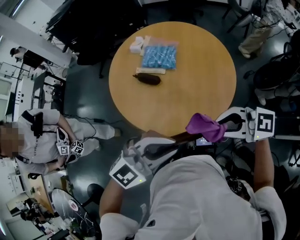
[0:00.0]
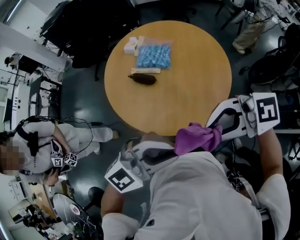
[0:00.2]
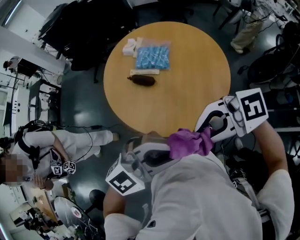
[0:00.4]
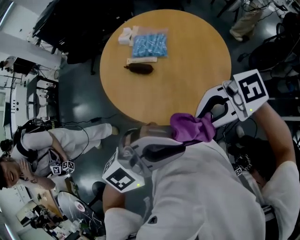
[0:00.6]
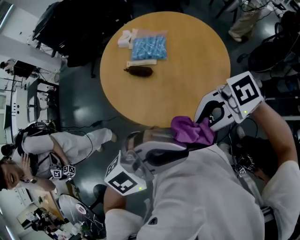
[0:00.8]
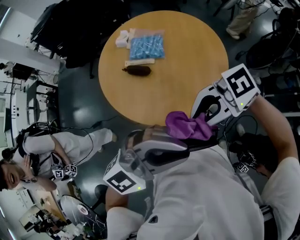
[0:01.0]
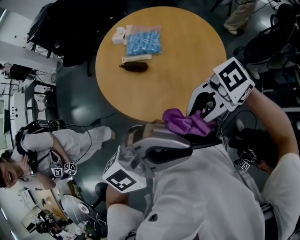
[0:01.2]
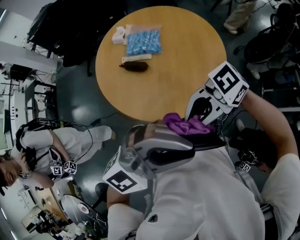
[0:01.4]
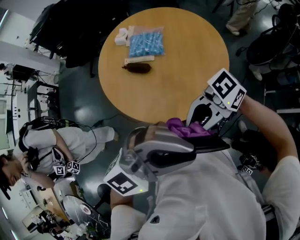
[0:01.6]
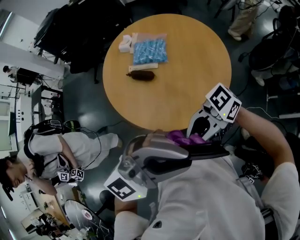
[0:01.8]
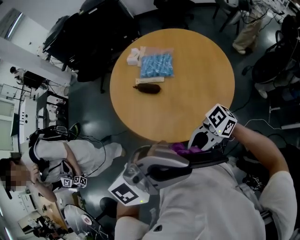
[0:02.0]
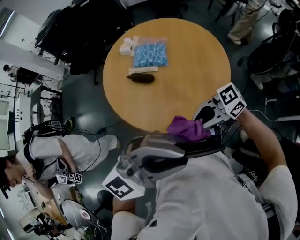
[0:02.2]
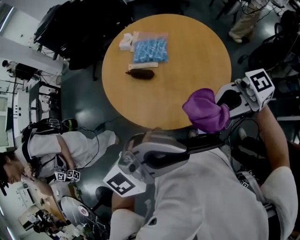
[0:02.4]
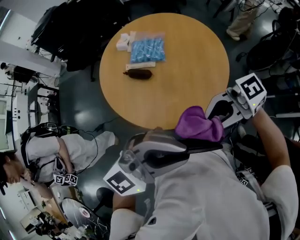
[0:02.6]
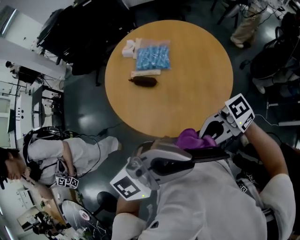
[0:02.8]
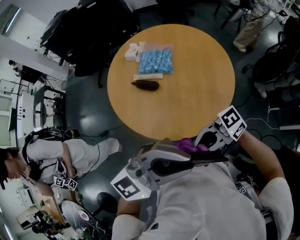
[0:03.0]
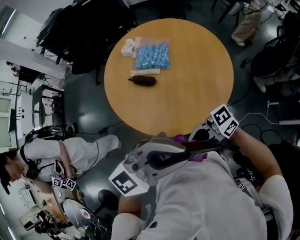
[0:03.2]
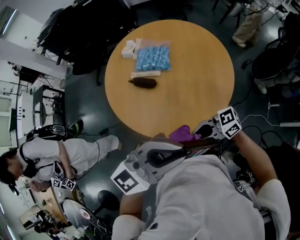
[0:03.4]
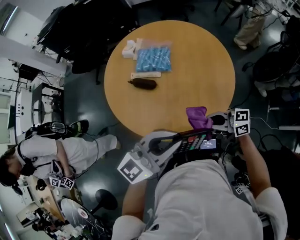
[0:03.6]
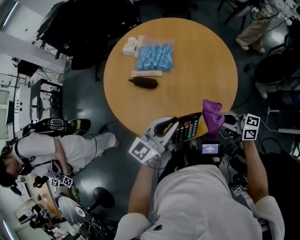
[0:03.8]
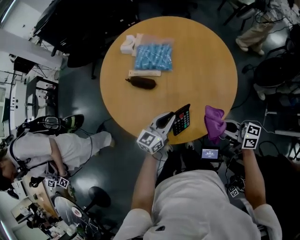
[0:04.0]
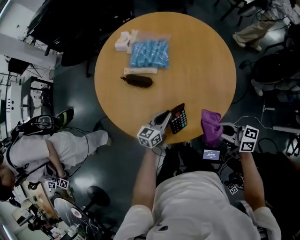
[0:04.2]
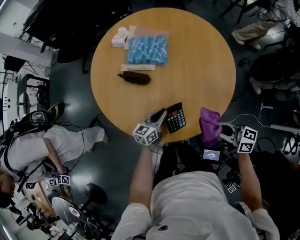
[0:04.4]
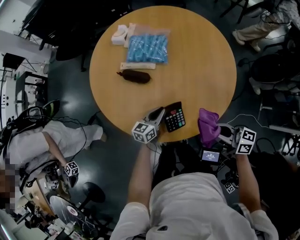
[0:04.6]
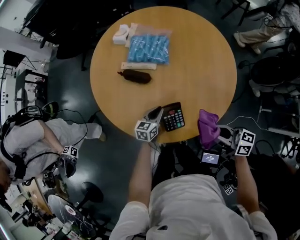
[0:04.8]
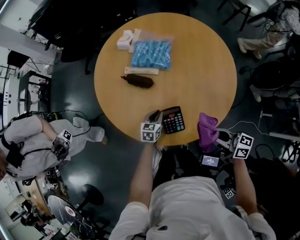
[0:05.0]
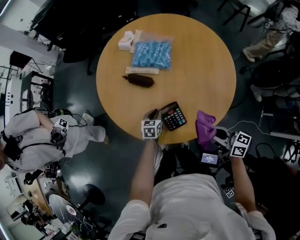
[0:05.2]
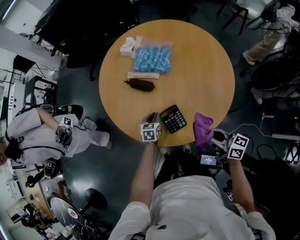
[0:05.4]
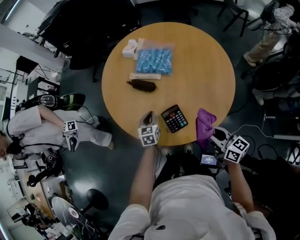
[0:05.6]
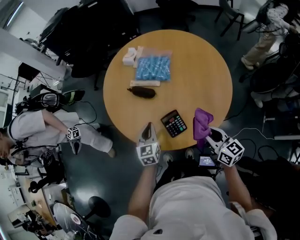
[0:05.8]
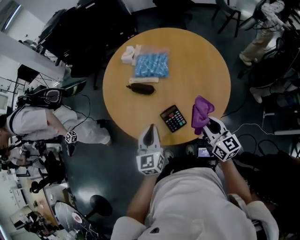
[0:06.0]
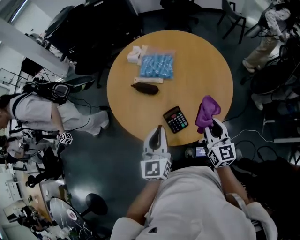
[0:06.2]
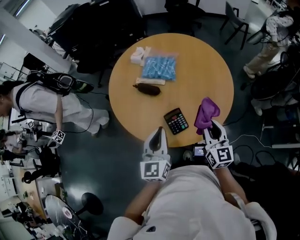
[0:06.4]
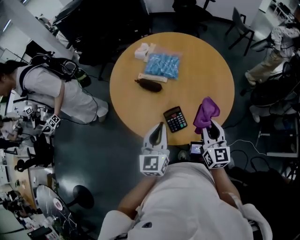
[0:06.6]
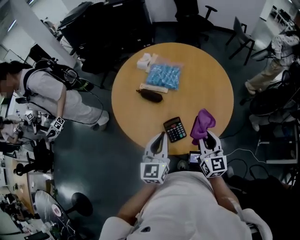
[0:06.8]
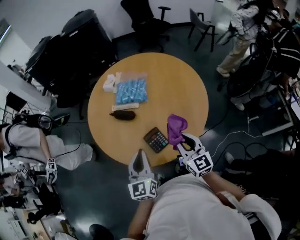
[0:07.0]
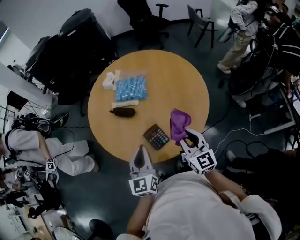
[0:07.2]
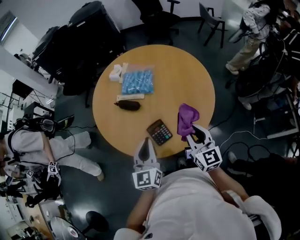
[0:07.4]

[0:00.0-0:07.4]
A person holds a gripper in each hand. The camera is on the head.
0:00.0 to 0:01.4: The left gripper travels upward by approximately 10 cm, and turns by about 20 degrees. The right gripper changes place by about 10 cm, and rotates some 40 degrees.
0:01.4 to 0:03.0: The right gripper goes up and down, roughly 10 cm each way, reversing 2 times.
0:03.0 to 0:04.4: The right gripper moves some 25 cm, and turns by some 60 degrees; the left gripper shifts approximately 50 cm downward, and changes its angle by approximately 60 degrees.
0:04.4 to 0:06.0: The right gripper moves upward, about 5 cm, and turns by about 40 degrees. Meanwhile the left gripper goes roughly 20 cm upward, and swivels some 40 degrees.
0:06.0 to 0:07.4: The left gripper heads to the right and upward, covering about 10 cm.

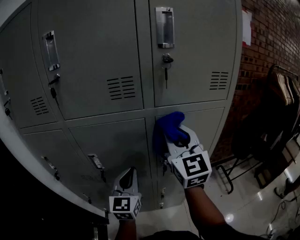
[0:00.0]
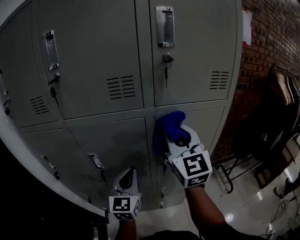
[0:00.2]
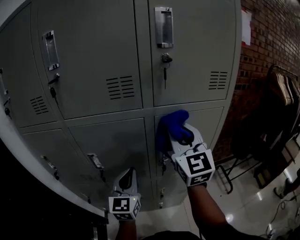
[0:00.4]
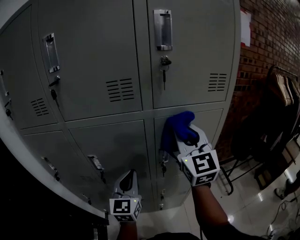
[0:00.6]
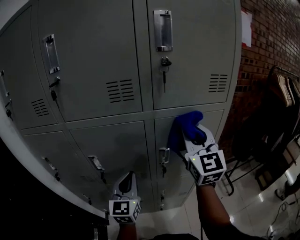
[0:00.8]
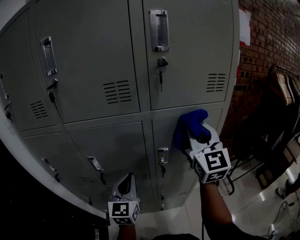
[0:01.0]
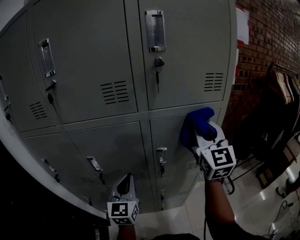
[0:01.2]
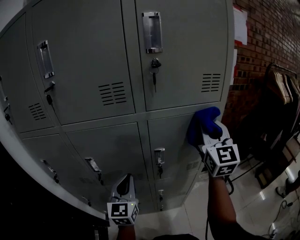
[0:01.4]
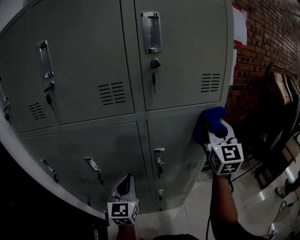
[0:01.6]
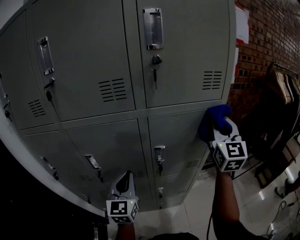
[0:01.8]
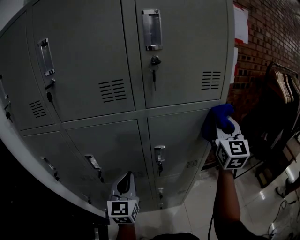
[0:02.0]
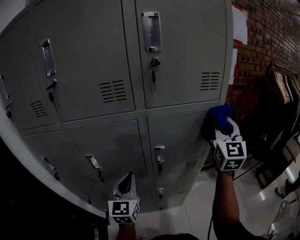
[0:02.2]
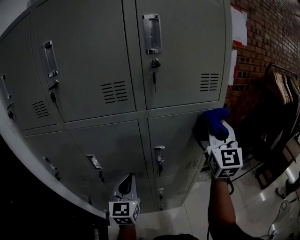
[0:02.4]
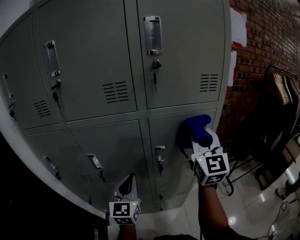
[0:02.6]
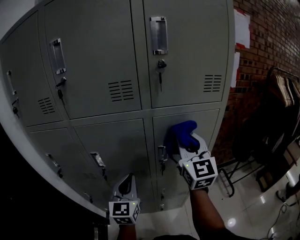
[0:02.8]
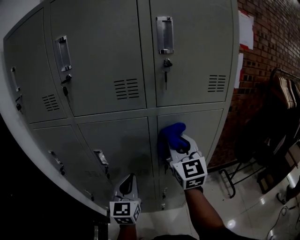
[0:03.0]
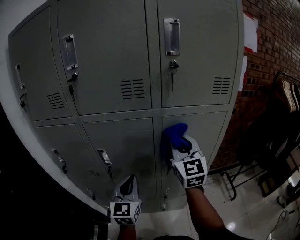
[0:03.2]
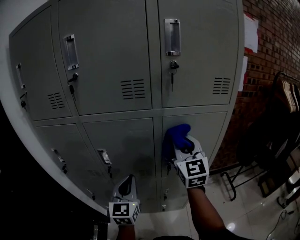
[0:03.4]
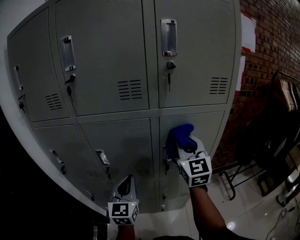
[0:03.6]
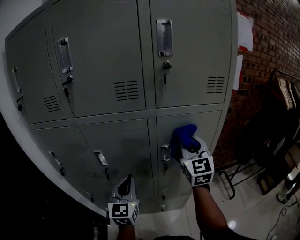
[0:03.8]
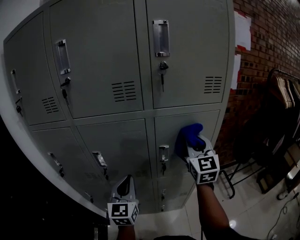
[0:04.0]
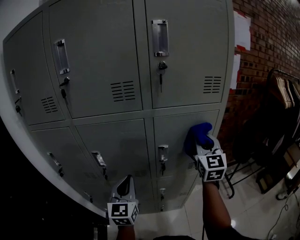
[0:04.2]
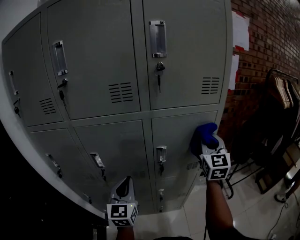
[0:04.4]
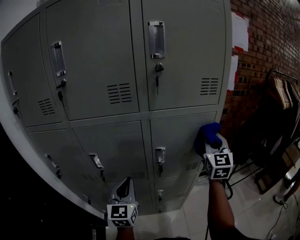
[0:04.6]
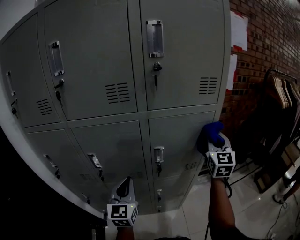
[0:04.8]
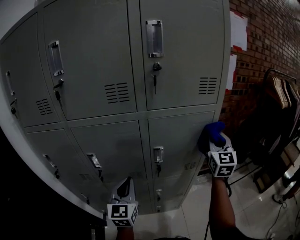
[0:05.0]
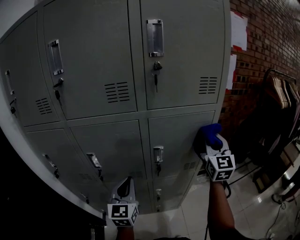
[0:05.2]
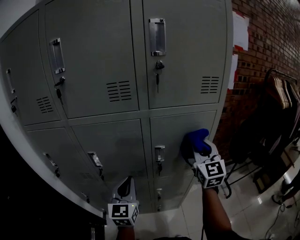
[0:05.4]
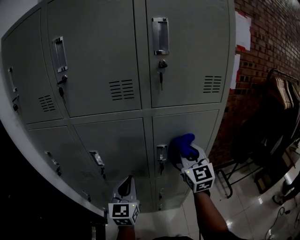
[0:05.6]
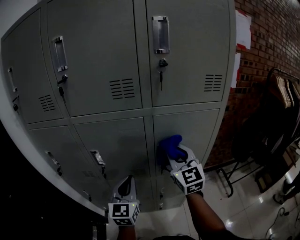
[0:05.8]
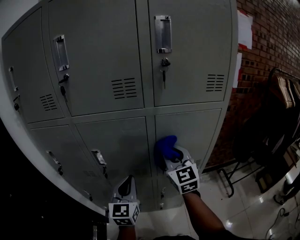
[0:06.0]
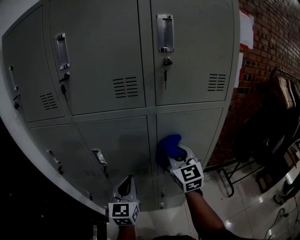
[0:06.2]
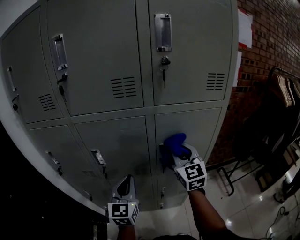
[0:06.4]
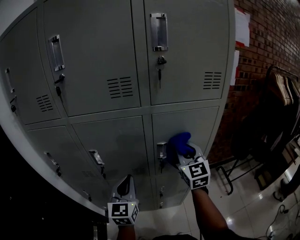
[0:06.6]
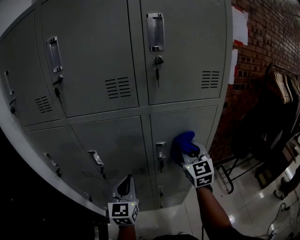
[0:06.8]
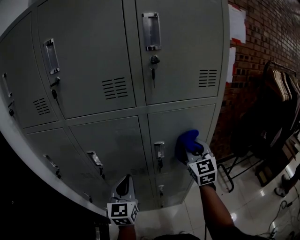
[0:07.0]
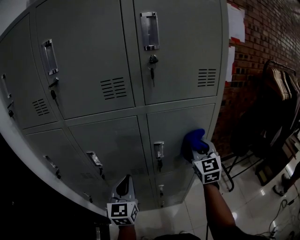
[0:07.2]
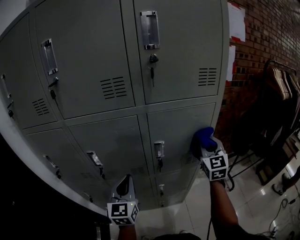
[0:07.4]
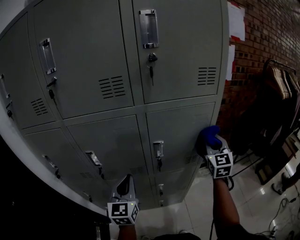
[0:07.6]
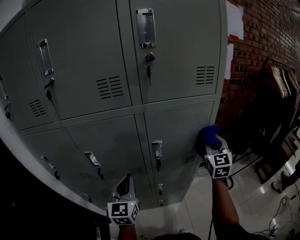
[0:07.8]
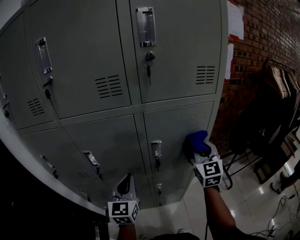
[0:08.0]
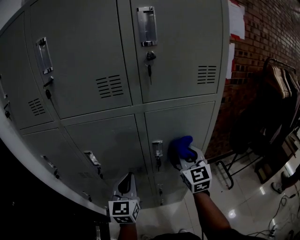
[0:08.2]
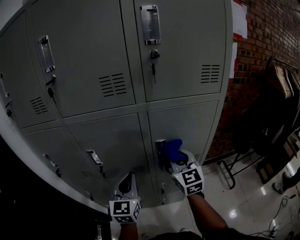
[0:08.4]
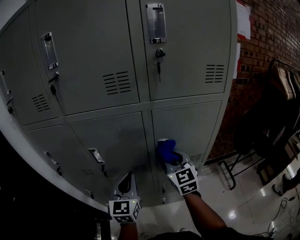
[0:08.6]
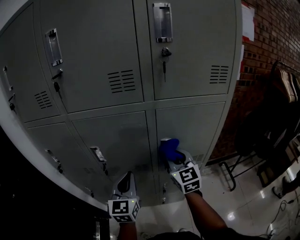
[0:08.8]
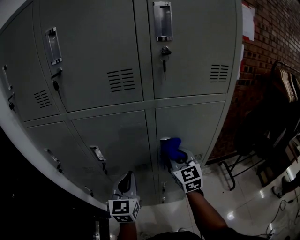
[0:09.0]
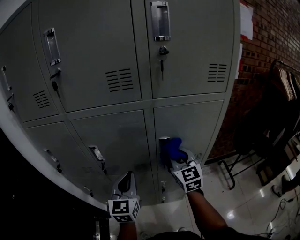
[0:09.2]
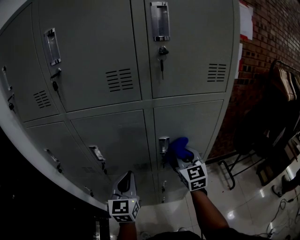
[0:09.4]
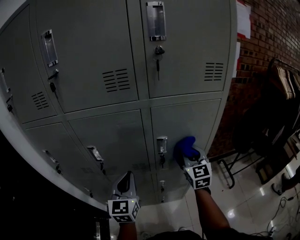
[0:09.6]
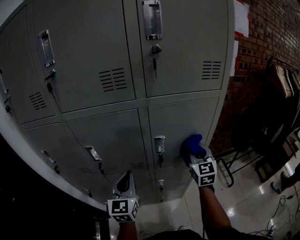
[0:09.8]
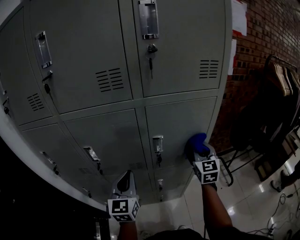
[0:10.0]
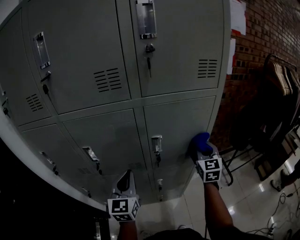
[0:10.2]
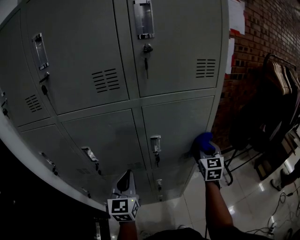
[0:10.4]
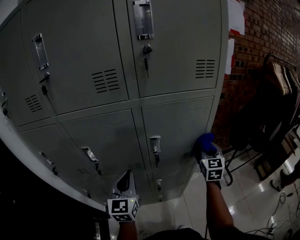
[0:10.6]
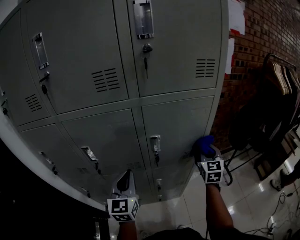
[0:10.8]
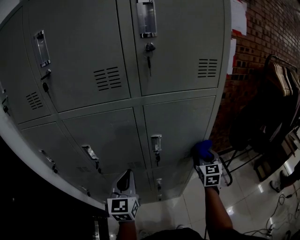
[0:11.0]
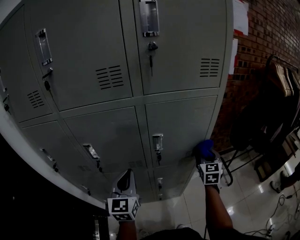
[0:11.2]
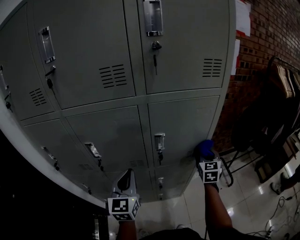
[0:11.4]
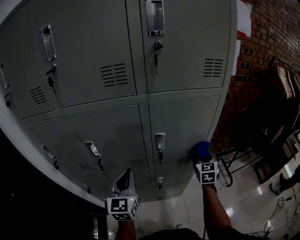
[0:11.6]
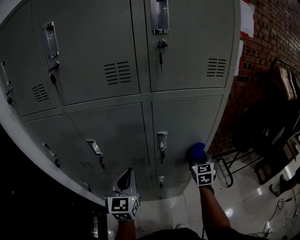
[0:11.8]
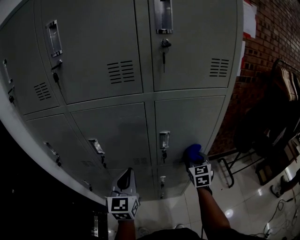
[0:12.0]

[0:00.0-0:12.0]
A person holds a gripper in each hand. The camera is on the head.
0:00.0 to 0:01.6: The right gripper travels to the right by about 20 cm.
0:01.6 to 0:03.0: The right gripper travels to the left by approximately 20 cm.
0:03.0 to 0:04.4: The right gripper shifts some 15 cm to the right.
0:04.4 to 0:06.0: The right gripper heads to the left, covering roughly 20 cm, and turns by approximately 20 degrees.
0:06.0 to 0:07.6: The right gripper travels to the right by roughly 20 cm, and rotates approximately 20 degrees.
0:07.6 to 0:09.0: The right gripper goes roughly 20 cm to the left, and rotates approximately 20 degrees.
0:09.0 to 0:10.4: The right gripper goes about 20 cm to the right, and changes its angle by about 20 degrees.
0:10.4 to 0:12.0: The right gripper shifts about 10 cm downward and to the left.

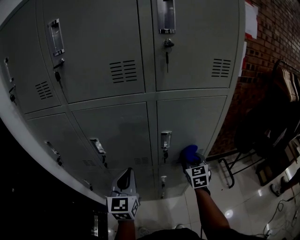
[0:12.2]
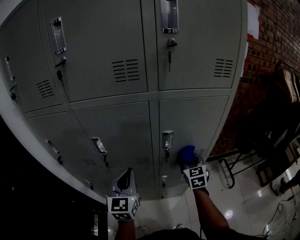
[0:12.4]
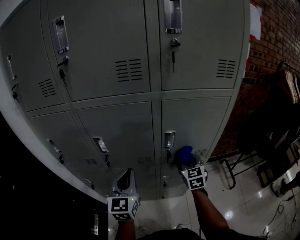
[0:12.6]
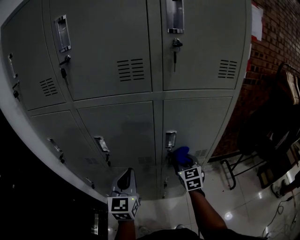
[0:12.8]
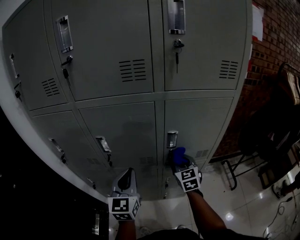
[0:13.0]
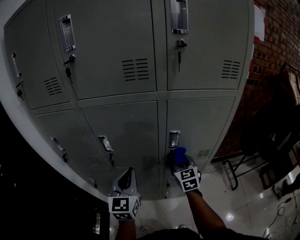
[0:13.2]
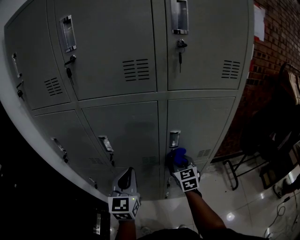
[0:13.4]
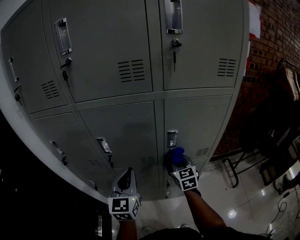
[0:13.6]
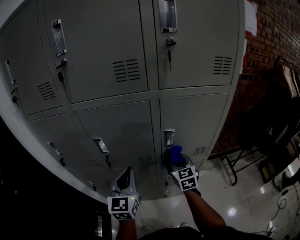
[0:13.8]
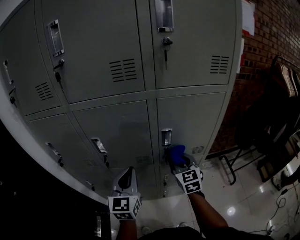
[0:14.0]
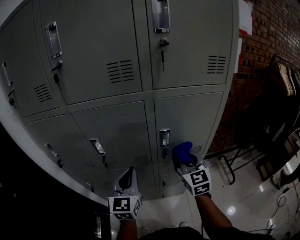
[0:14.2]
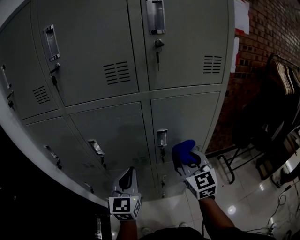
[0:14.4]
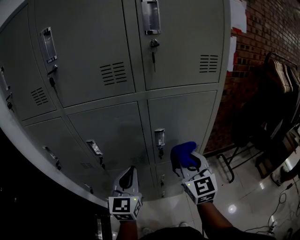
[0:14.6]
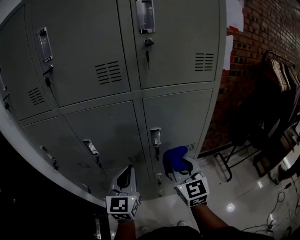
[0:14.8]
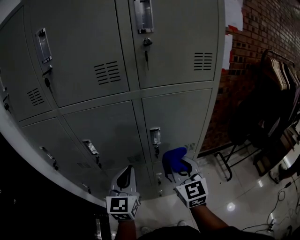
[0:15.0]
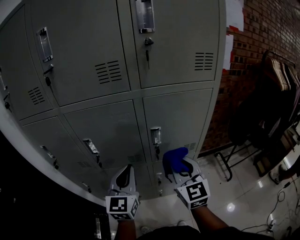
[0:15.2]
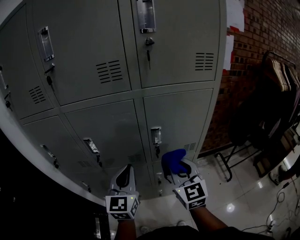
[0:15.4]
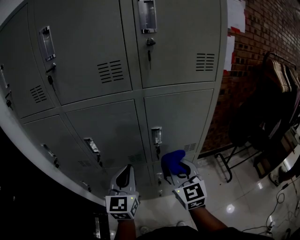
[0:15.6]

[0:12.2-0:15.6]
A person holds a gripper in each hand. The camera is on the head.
0:12.2 to 0:13.8: The right gripper goes some 10 cm to the left.
0:13.8 to 0:15.6: The left gripper ends up some 5 cm from where it was; the right gripper is displaced upward and backward by some 15 cm.

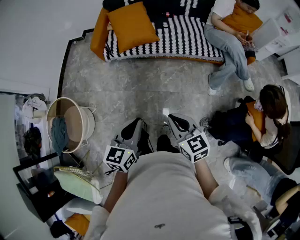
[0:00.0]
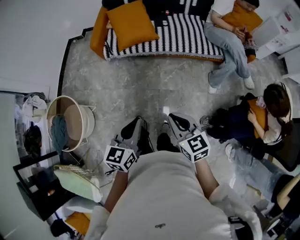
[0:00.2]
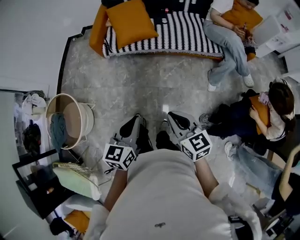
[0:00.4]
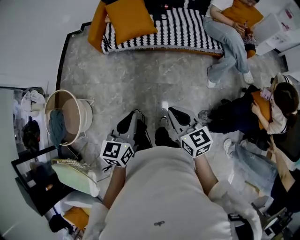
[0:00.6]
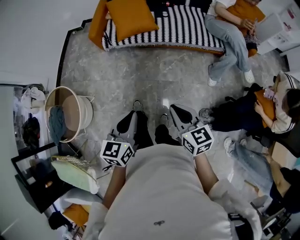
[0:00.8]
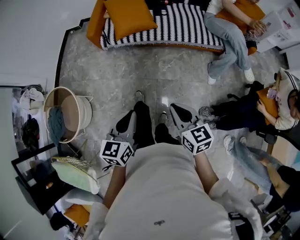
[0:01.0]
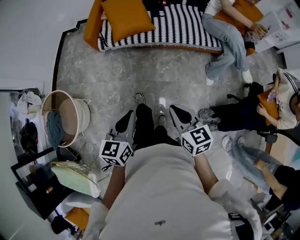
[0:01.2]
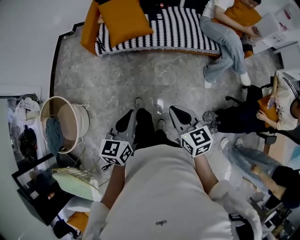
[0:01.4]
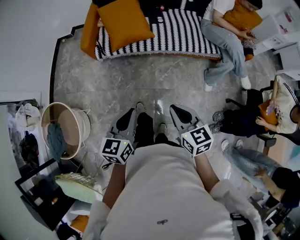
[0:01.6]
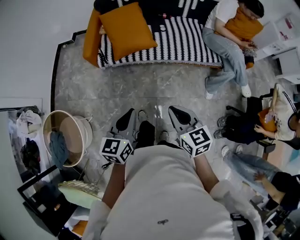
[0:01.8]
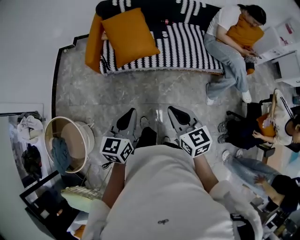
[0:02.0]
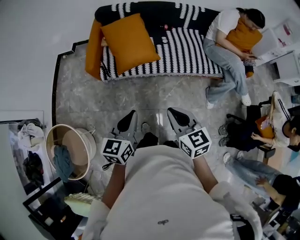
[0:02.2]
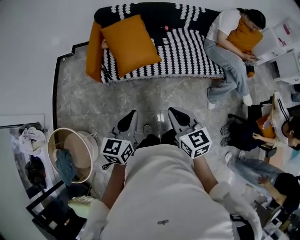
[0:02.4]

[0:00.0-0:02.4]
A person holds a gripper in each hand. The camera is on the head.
0:00.0 to 0:01.2: The grippers stay close to where they were, moving slightly.
0:01.2 to 0:02.4: The right gripper shifts about 30 cm forward and to the left. Meanwhile the left gripper is displaced forward by approximately 30 cm.
